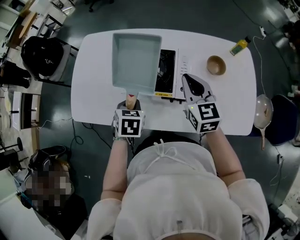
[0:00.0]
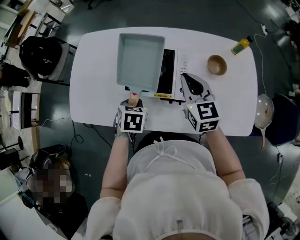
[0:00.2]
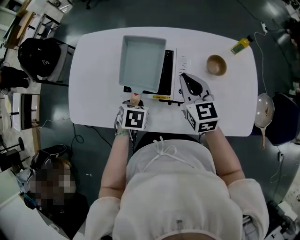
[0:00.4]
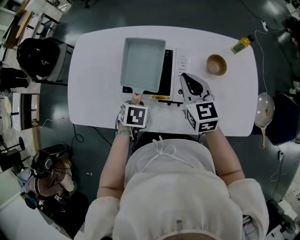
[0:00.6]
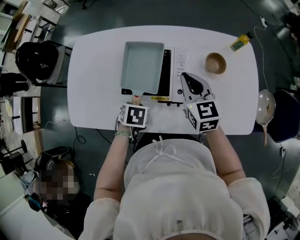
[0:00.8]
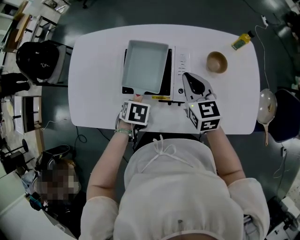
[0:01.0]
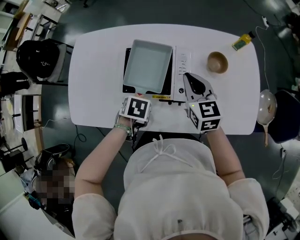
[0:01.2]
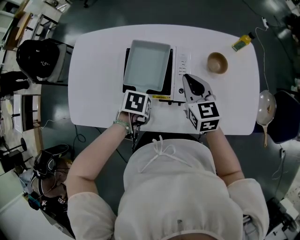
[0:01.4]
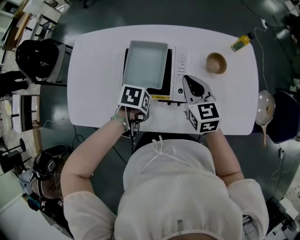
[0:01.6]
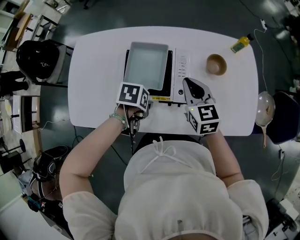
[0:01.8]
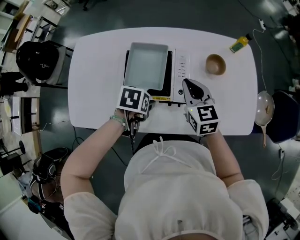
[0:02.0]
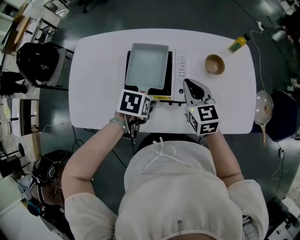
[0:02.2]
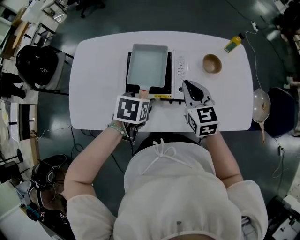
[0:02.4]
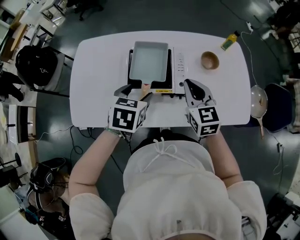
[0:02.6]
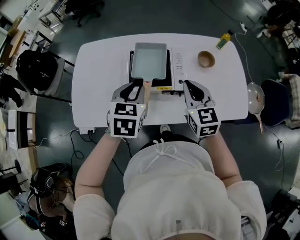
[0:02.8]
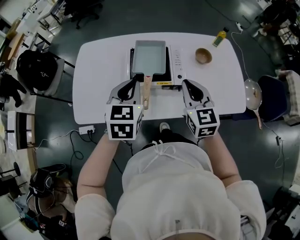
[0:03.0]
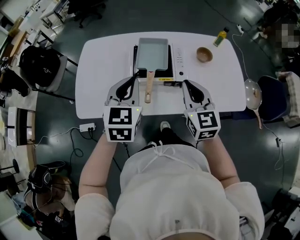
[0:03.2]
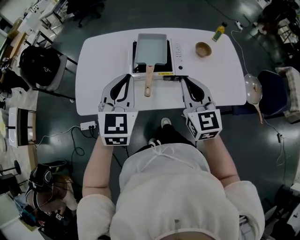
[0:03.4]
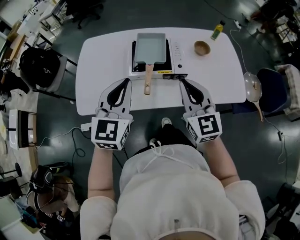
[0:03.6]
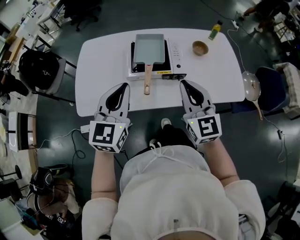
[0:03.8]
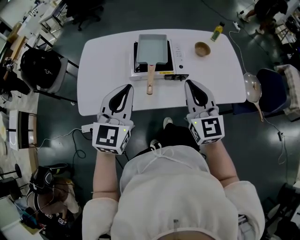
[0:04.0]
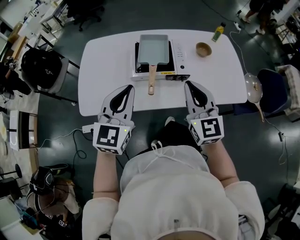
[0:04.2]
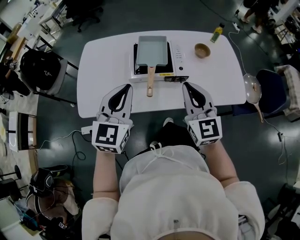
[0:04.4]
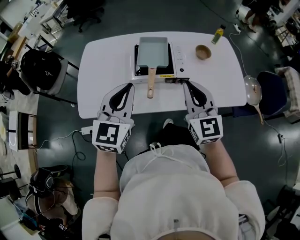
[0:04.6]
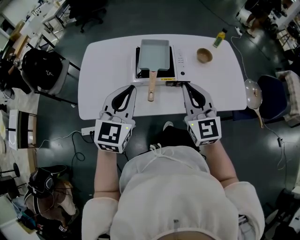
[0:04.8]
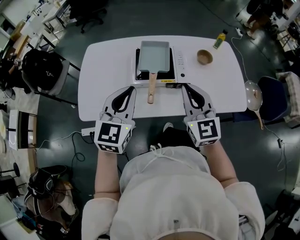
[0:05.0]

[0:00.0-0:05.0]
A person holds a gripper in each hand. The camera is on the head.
0:00.0 to 0:01.6: The left gripper goes approximately 5 cm downward, and changes its angle by approximately 40 degrees. The right gripper moves about 5 cm.
0:01.6 to 0:03.4: The left gripper shifts about 30 cm upward, angles its fingers upward, by approximately 60 degrees, and opens and closes again, while the right gripper ends up roughly 25 cm from where it was, and swivels approximately 20 degrees.
0:03.4 to 0:05.0: The grippers stay close to where they were, moving slightly.

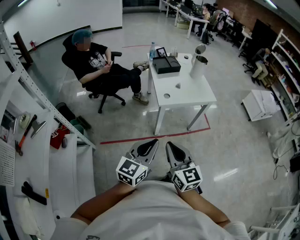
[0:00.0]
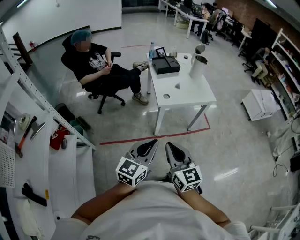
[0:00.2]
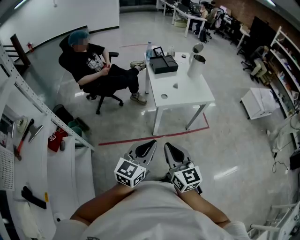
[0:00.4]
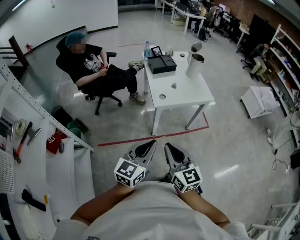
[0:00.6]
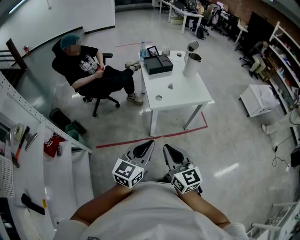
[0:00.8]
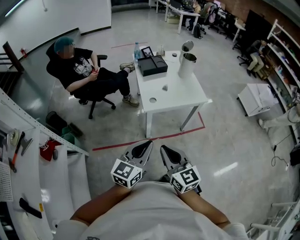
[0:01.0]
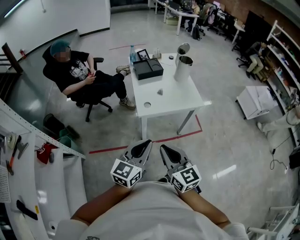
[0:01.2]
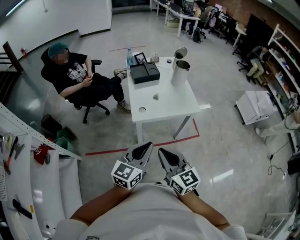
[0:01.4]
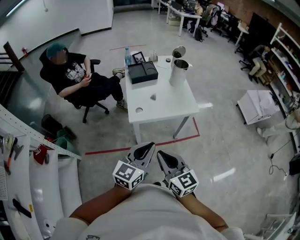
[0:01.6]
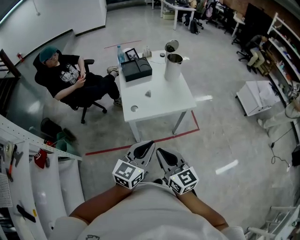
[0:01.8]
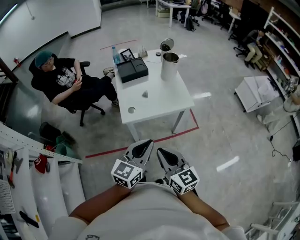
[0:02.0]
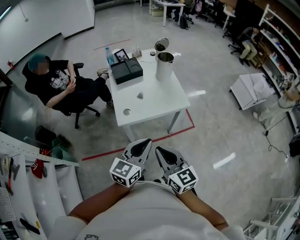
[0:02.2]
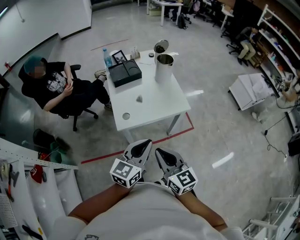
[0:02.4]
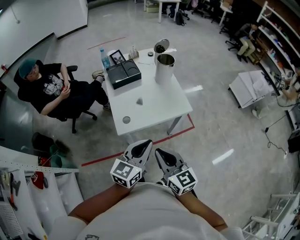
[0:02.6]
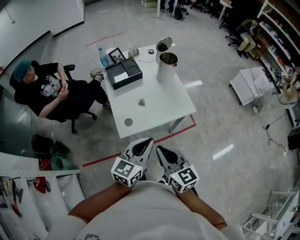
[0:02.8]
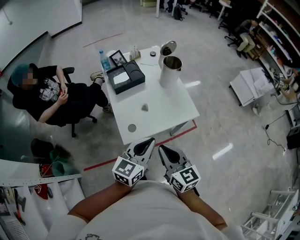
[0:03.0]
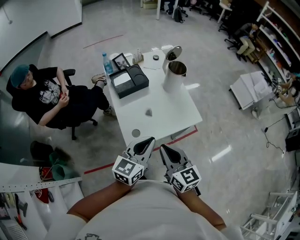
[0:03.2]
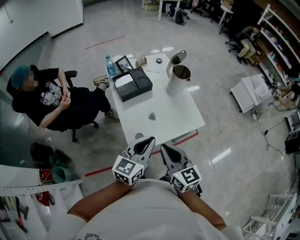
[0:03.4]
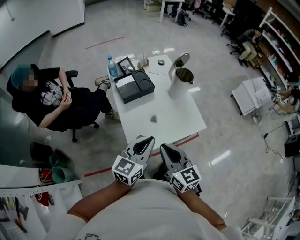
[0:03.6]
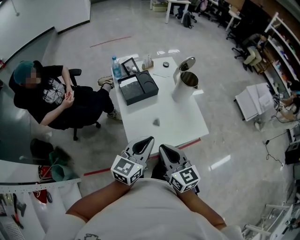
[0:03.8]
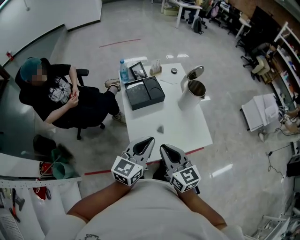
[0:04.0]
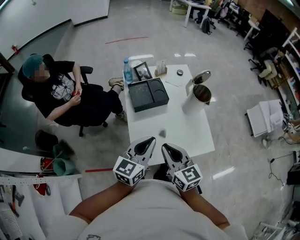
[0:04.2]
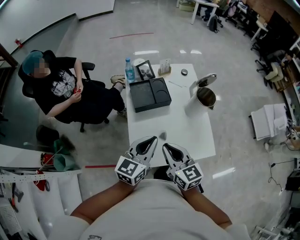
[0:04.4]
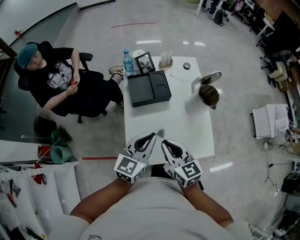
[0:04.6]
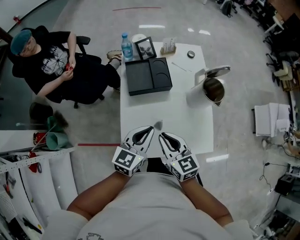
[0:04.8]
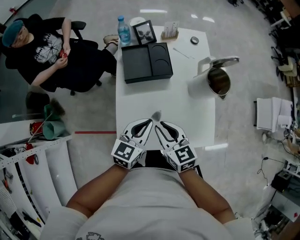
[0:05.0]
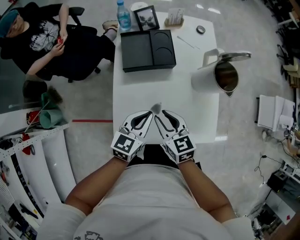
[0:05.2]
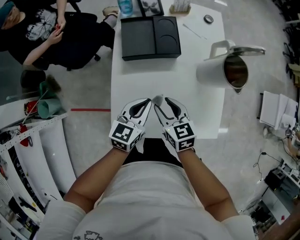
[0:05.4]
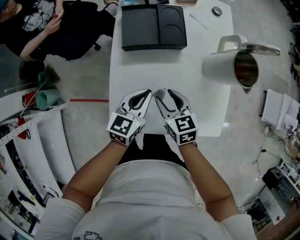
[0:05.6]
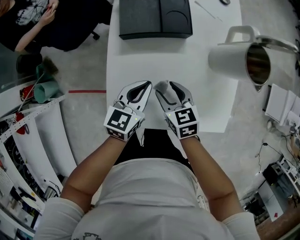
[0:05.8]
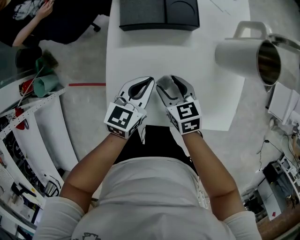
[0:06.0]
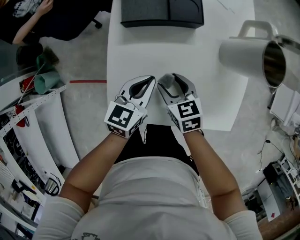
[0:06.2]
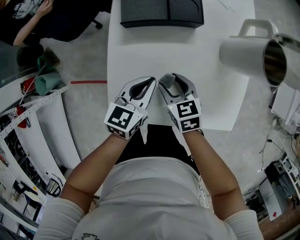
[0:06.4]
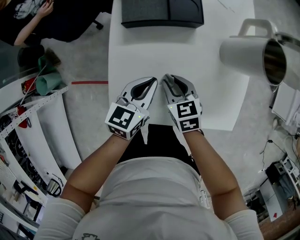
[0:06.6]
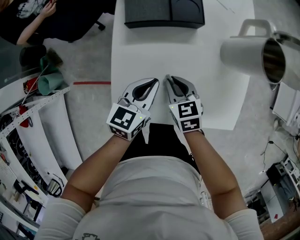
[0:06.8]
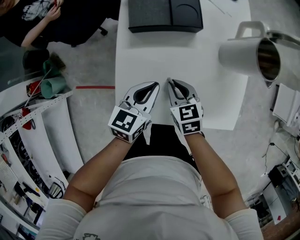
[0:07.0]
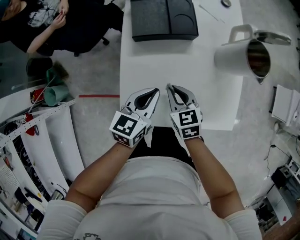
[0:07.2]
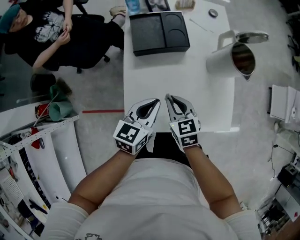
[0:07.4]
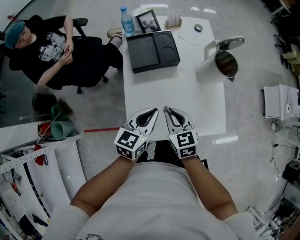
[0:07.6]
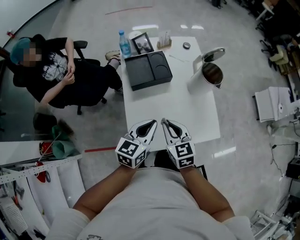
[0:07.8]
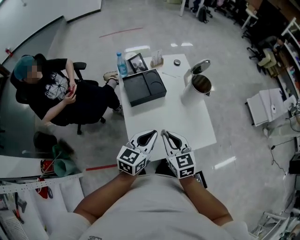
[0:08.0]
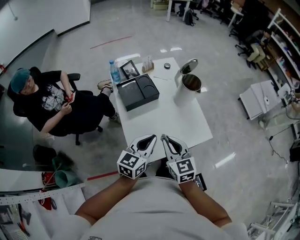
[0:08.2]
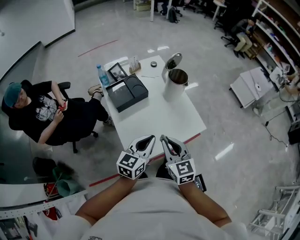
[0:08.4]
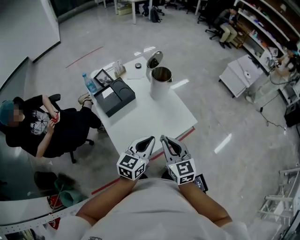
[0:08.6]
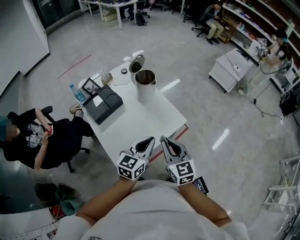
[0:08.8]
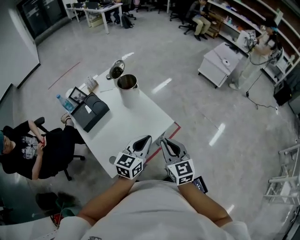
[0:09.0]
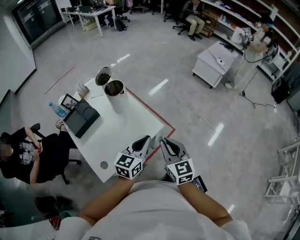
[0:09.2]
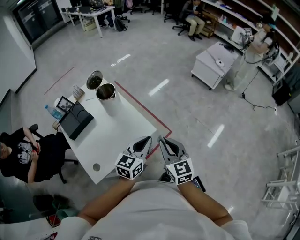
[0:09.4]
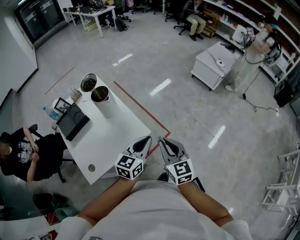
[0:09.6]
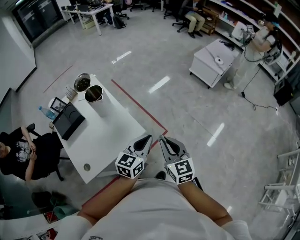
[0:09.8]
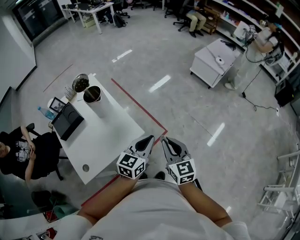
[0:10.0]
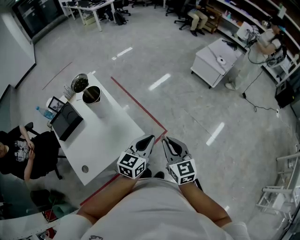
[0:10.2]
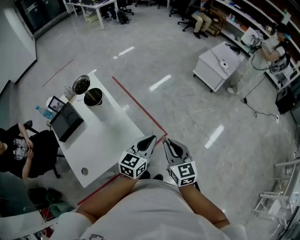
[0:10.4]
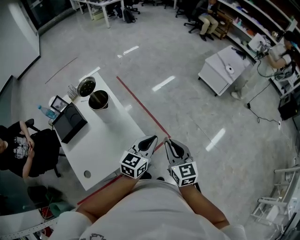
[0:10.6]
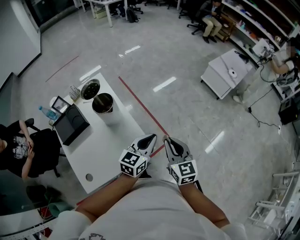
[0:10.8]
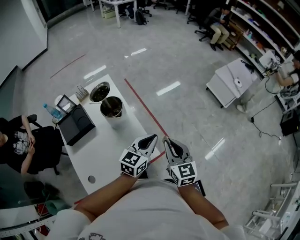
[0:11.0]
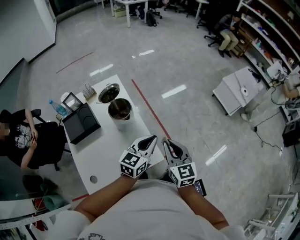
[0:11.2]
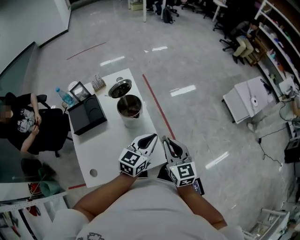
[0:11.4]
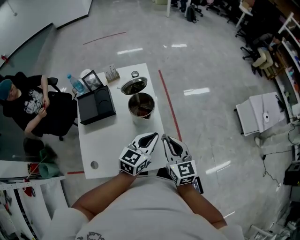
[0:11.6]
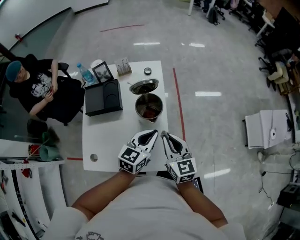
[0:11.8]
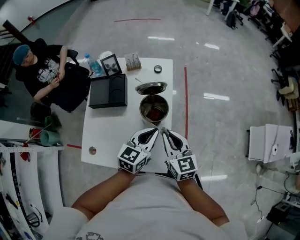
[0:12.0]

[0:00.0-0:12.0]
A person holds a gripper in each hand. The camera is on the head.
0:00.0 to 0:01.6: The two grippers go some 25 cm to the right and forward.
0:01.6 to 0:03.0: Both grippers travel together forward, some 25 cm.
0:03.0 to 0:04.4: The right gripper travels forward by about 20 cm. Meanwhile the left gripper goes some 20 cm forward and to the left.
0:04.4 to 0:06.0: The grippers both shift downward by approximately 30 cm. The right gripper tilts its fingers about 30 degrees downward, and opens its fingers; the left gripper swivels roughly 20 degrees.
0:06.0 to 0:07.6: The two grippers go roughly 15 cm upward. The right gripper closes up.
0:07.6 to 0:09.0: The right gripper changes place by some 30 cm, and rotates about 40 degrees. The left gripper moves about 30 cm, and swivels roughly 40 degrees.
0:09.0 to 0:10.4: Both grippers move to the right and forward, some 25 cm.
0:10.4 to 0:12.0: The right gripper shifts by about 35 cm, and swivels roughly 40 degrees. The left gripper moves roughly 30 cm, and turns by about 40 degrees.

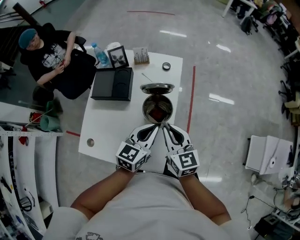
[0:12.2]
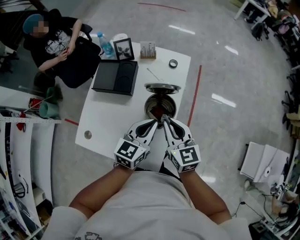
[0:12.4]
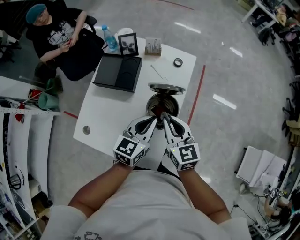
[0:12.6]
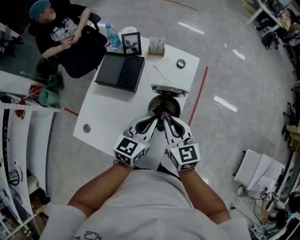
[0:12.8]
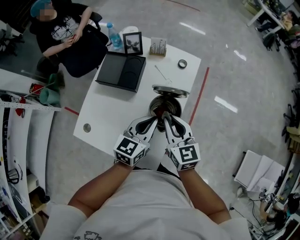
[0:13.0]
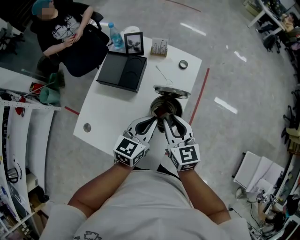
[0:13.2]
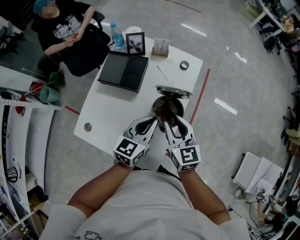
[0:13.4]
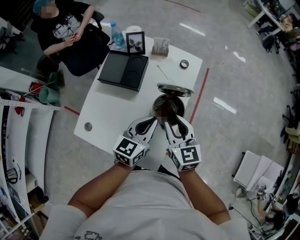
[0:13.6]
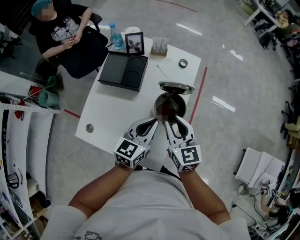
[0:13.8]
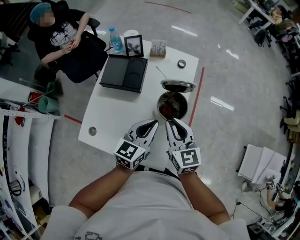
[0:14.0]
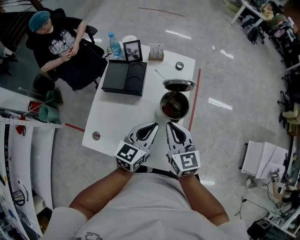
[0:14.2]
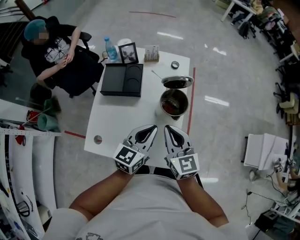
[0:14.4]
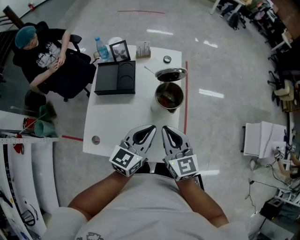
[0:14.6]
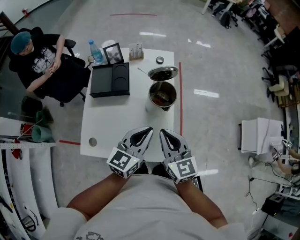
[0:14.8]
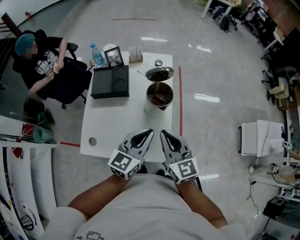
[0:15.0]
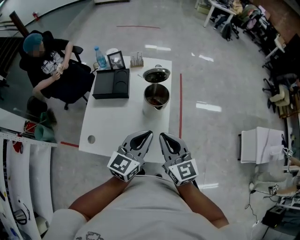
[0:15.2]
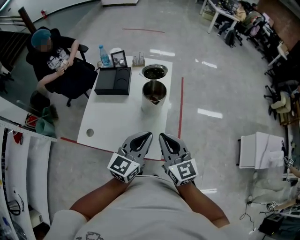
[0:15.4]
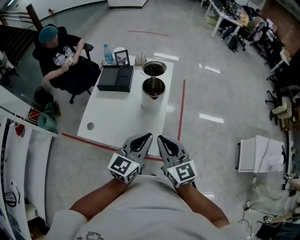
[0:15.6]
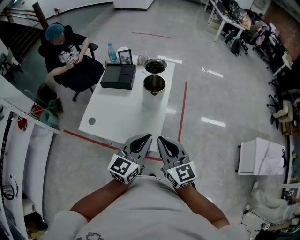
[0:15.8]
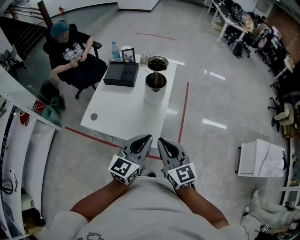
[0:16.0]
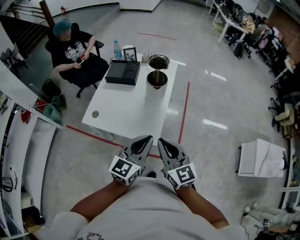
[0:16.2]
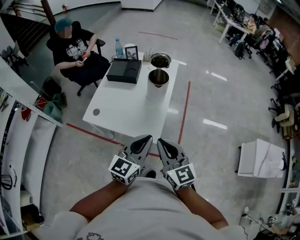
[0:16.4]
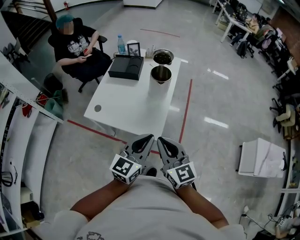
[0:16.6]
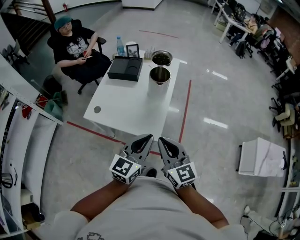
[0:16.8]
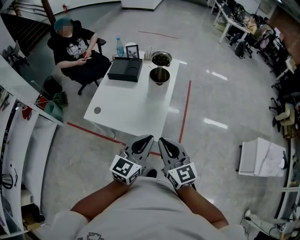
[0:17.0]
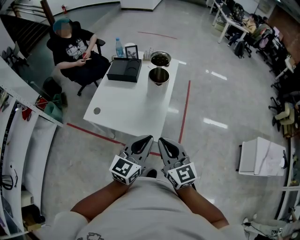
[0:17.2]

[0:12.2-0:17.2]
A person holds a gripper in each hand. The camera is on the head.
0:12.2 to 0:13.8: The left gripper goes approximately 5 cm to the left; the right gripper moves about 5 cm.
0:13.8 to 0:15.6: The left gripper travels backward and upward by roughly 25 cm. Meanwhile the right gripper shifts approximately 25 cm backward, and closes.
0:15.6 to 0:17.2: The grippers both shift backward by roughly 10 cm.

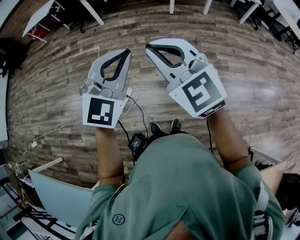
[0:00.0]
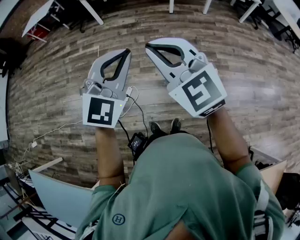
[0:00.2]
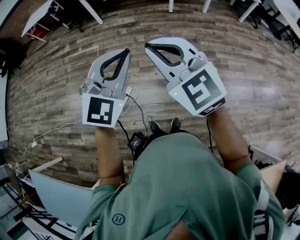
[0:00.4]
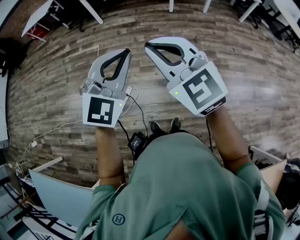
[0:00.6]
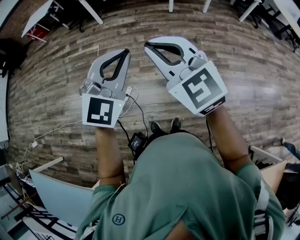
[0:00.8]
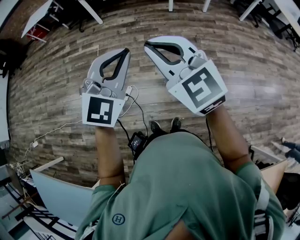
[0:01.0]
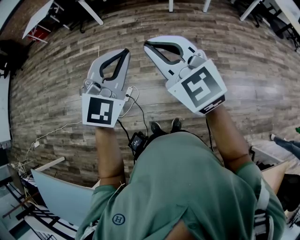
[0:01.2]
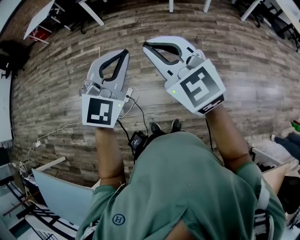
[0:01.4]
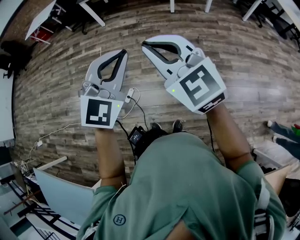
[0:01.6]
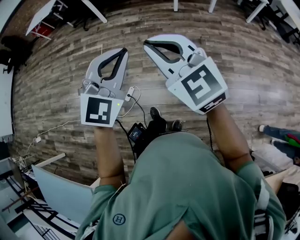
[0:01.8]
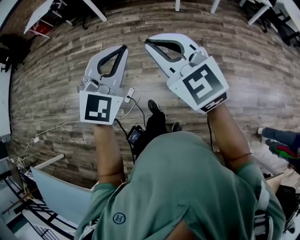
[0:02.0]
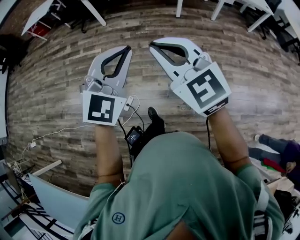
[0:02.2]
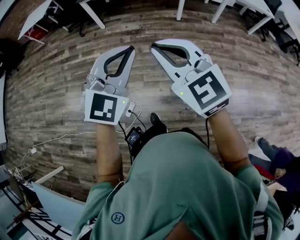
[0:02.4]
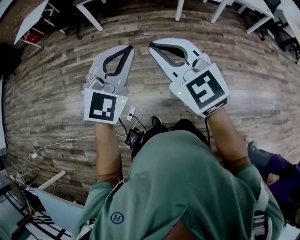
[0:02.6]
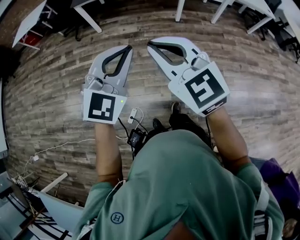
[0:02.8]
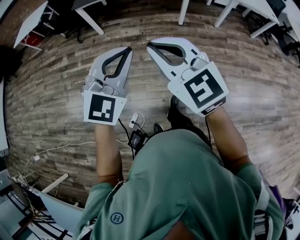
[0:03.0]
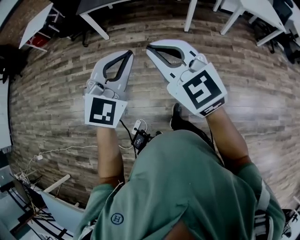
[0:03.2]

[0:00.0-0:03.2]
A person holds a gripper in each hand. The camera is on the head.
0:00.0 to 0:01.6: The grippers both shift to the right by about 5 cm.
0:01.6 to 0:03.2: Both grippers are carried forward, approximately 40 cm.
